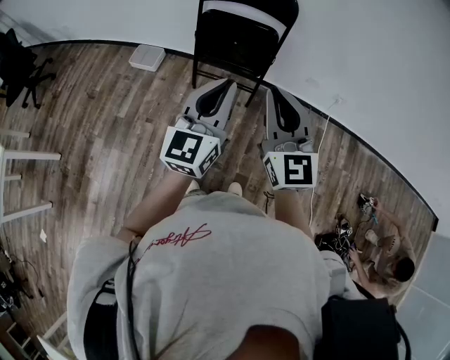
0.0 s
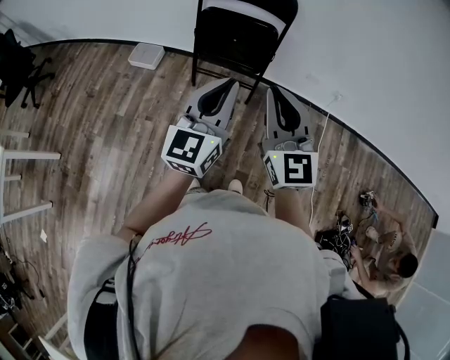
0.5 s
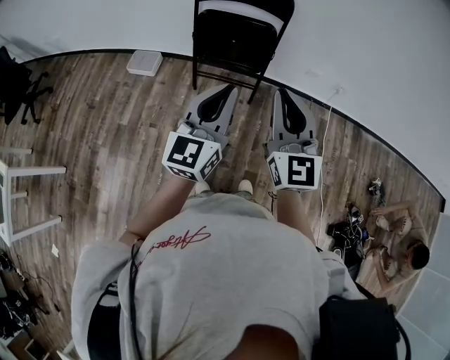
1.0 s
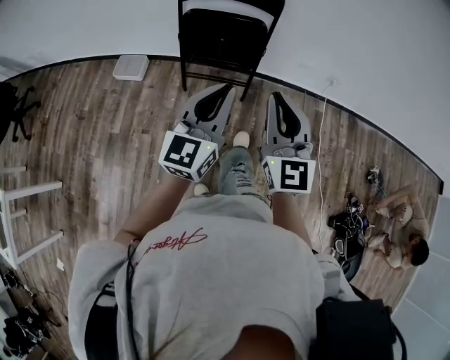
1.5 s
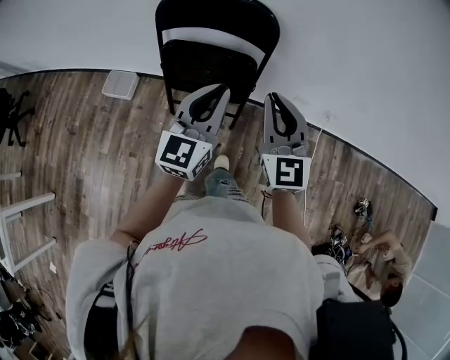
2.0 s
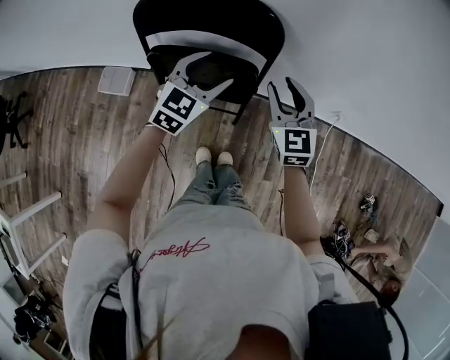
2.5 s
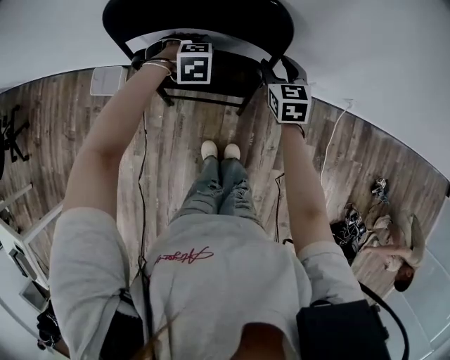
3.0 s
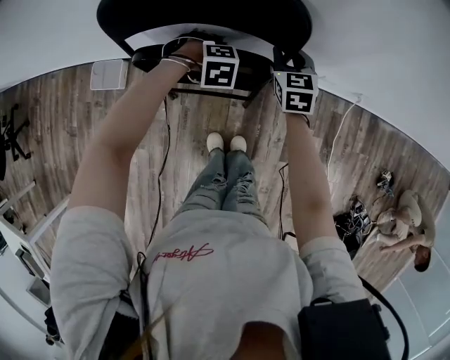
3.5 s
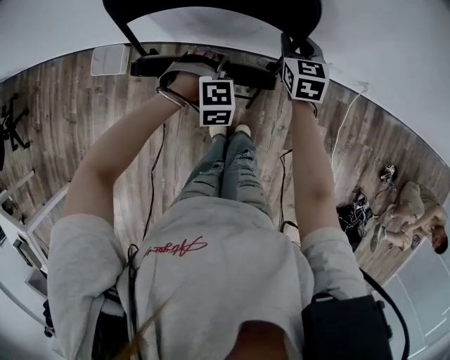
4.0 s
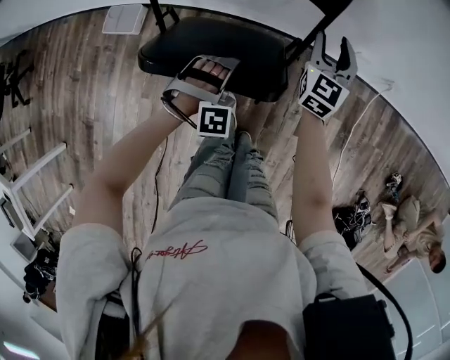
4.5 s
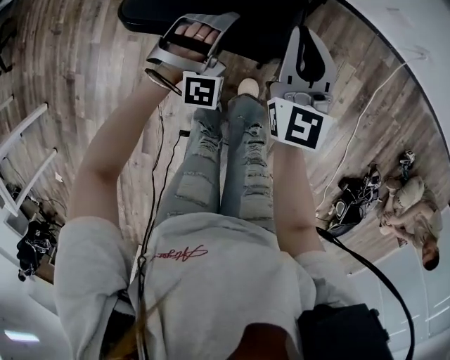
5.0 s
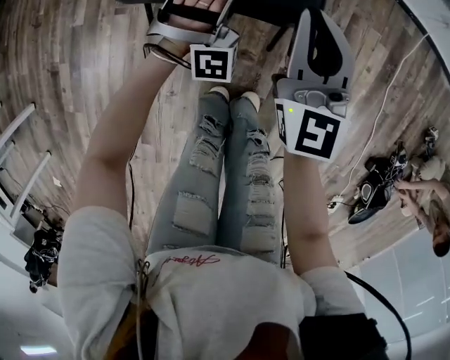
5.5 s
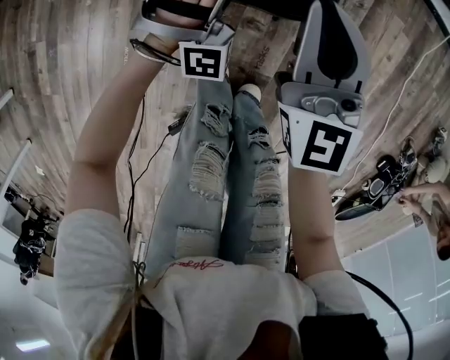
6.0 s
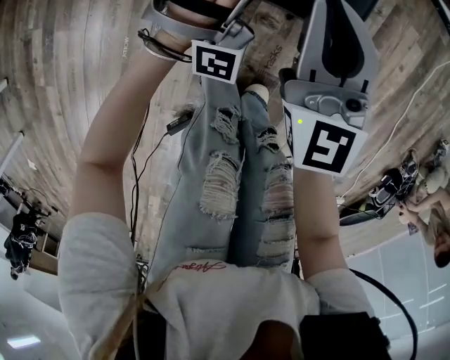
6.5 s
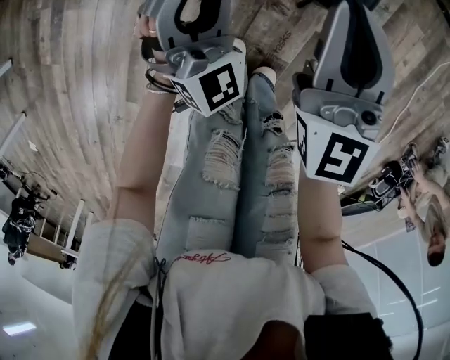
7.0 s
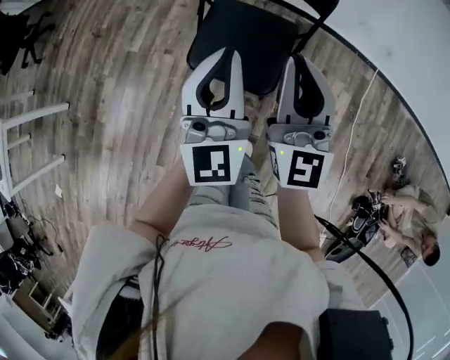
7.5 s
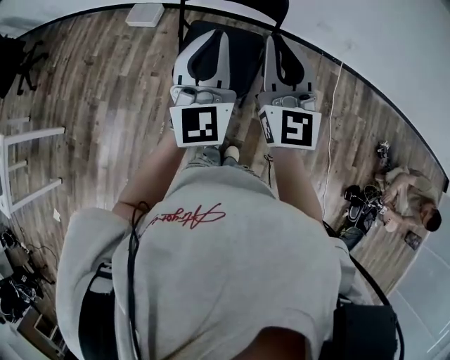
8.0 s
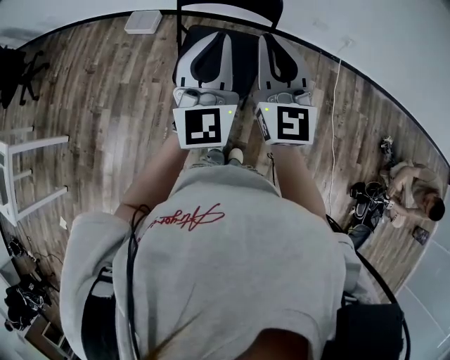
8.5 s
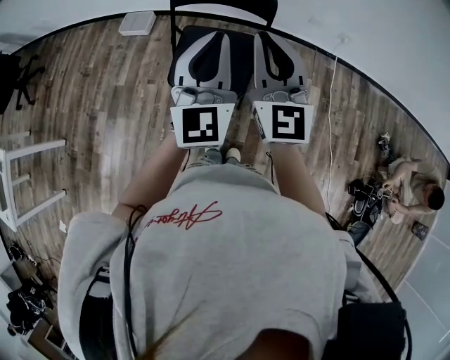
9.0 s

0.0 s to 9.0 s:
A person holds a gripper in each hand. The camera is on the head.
0.0 to 2.0 s: Both grippers travel together forward, about 25 cm.
2.0 to 4.5 s: The grippers both shift downward by approximately 30 cm. The left gripper twists some 90 degrees clockwise, seen from behind, and opens up. Meanwhile the right gripper swivels some 30 degrees, and opens.
4.5 to 7.0 s: The right gripper heads backward and to the left, covering about 50 cm, swivels about 30 degrees, and closes up; the left gripper heads backward, downward and to the left, covering roughly 40 cm, and tilts its fingers approximately 40 degrees upward.
7.0 to 9.0 s: Both grippers move upward, roughly 50 cm. The left gripper changes its angle by some 40 degrees, and closes up.

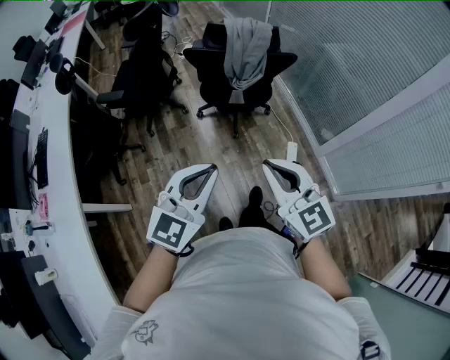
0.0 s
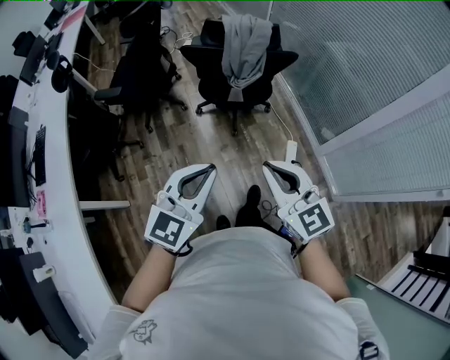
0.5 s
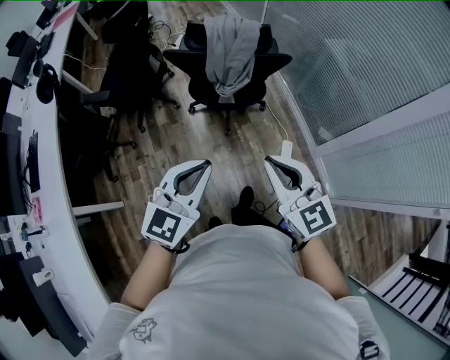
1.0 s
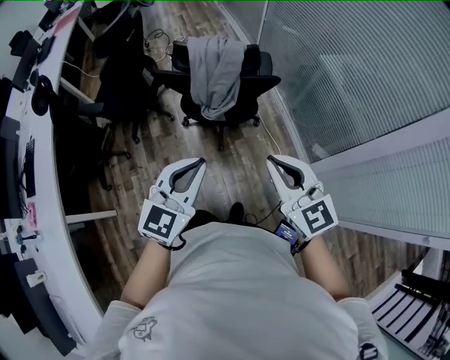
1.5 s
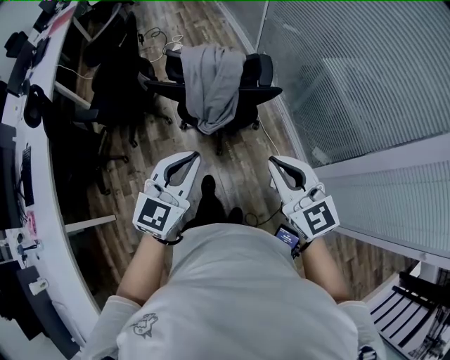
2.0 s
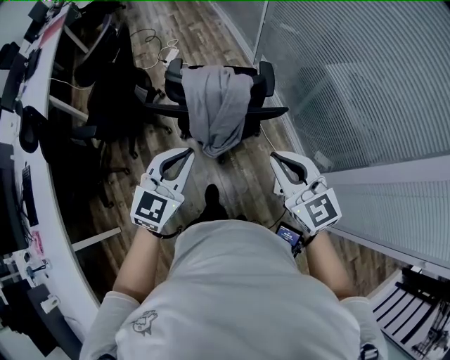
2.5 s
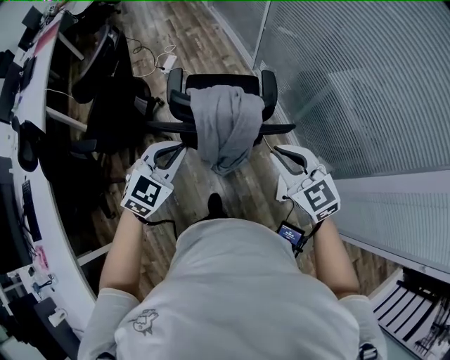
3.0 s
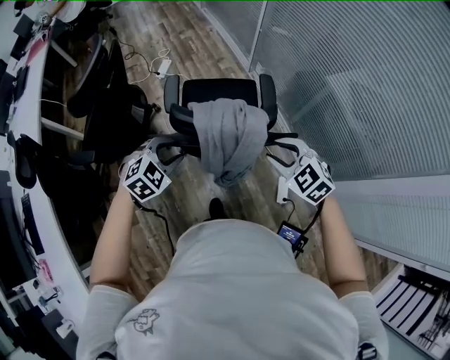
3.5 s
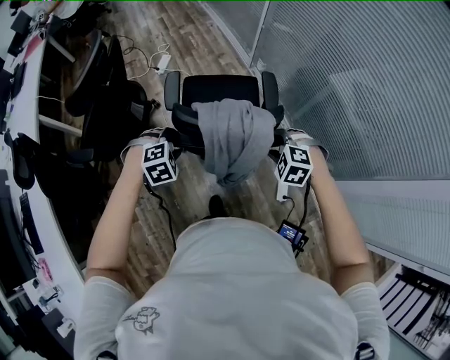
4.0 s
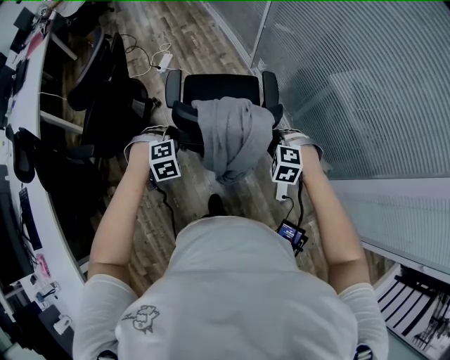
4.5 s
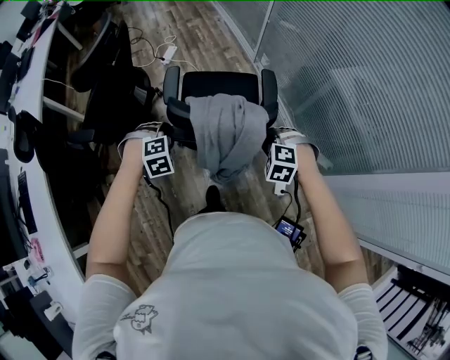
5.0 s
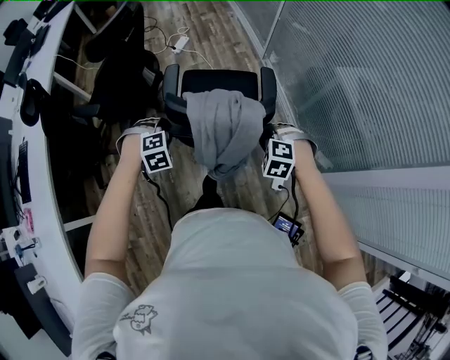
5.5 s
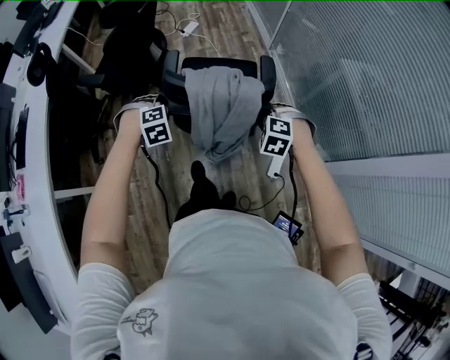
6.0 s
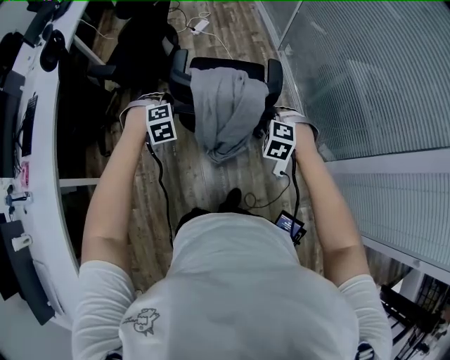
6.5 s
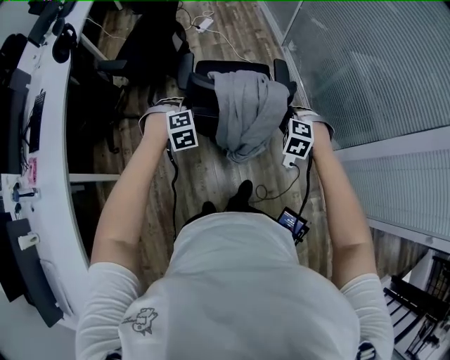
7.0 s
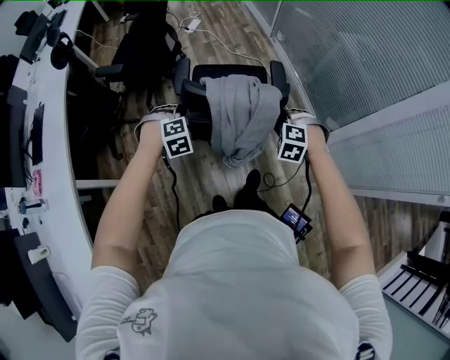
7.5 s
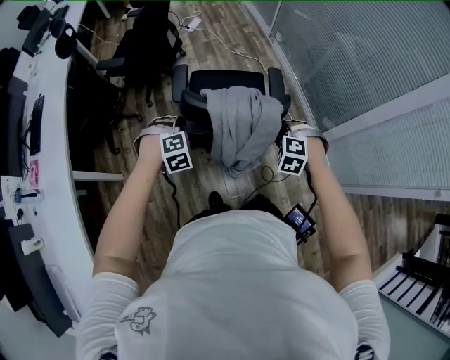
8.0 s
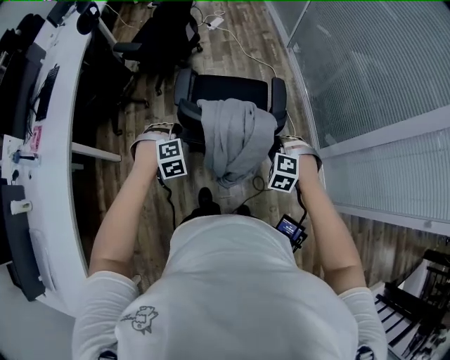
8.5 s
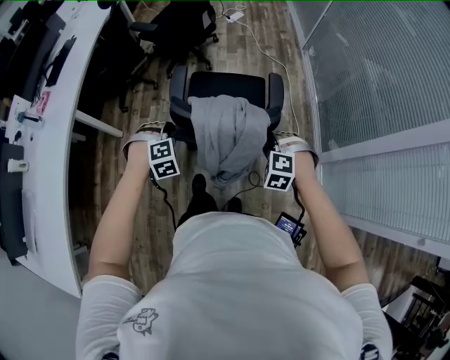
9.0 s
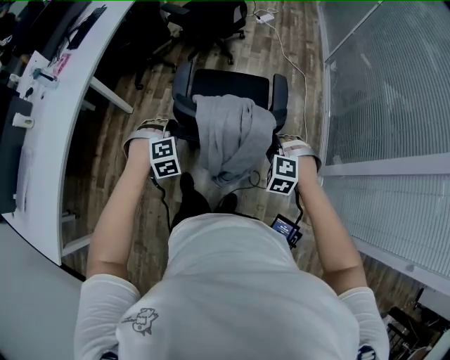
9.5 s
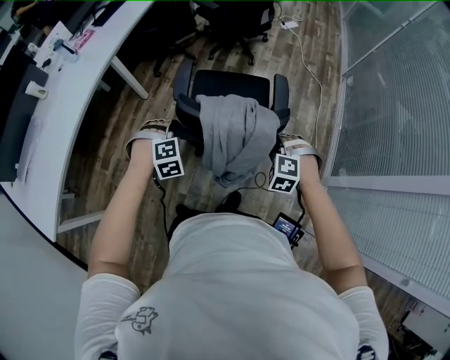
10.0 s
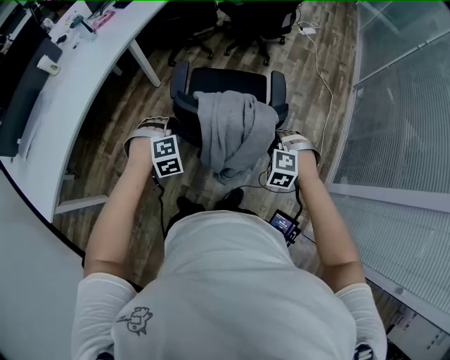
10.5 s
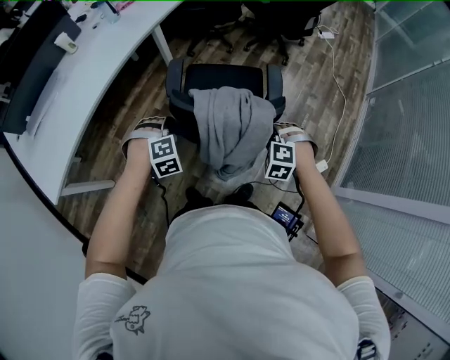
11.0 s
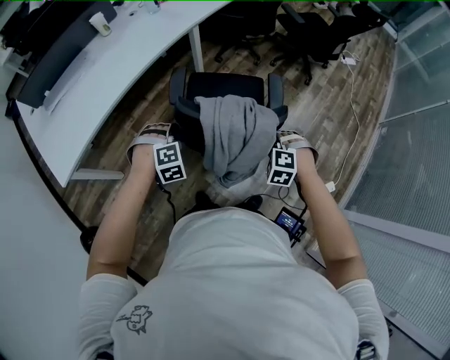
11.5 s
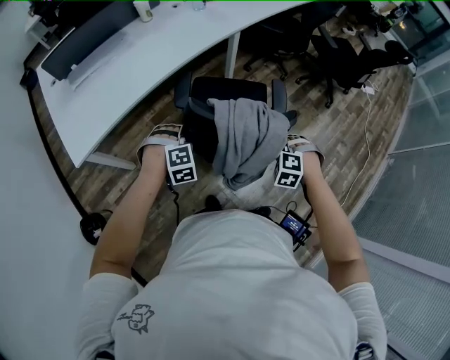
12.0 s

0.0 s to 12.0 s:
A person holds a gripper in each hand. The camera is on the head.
0.0 to 2.0 s: Both grippers move forward and to the right, some 35 cm.
2.0 to 4.0 s: The left gripper heads forward, downward and to the left, covering roughly 40 cm, tips its fingers downward by about 50 degrees, and opens up, while the right gripper is displaced forward and downward by about 35 cm, angles its fingers downward, by about 50 degrees, and opens.
4.0 to 6.0 s: The two grippers go roughly 20 cm backward.
6.0 to 8.0 s: The two grippers go roughly 30 cm backward.
8.0 to 10.0 s: The left gripper ends up some 30 cm from where it was, and swivels roughly 30 degrees, while the right gripper moves roughly 15 cm, and rotates some 40 degrees.
10.0 to 12.0 s: The two grippers travel together, approximately 40 cm. The left gripper changes its angle by approximately 30 degrees, while the right gripper rotates roughly 30 degrees.

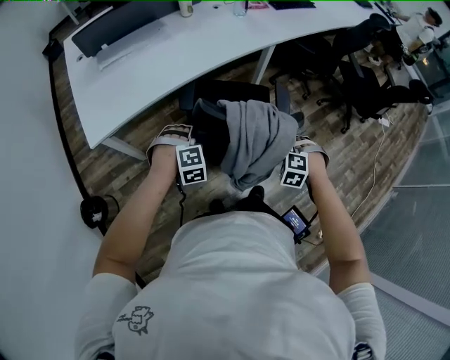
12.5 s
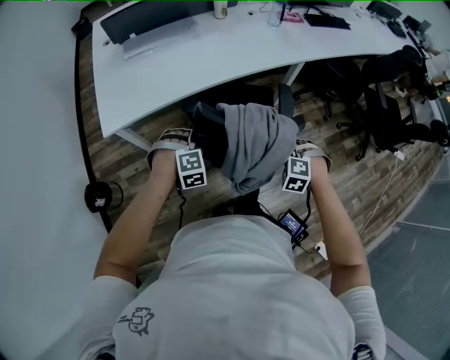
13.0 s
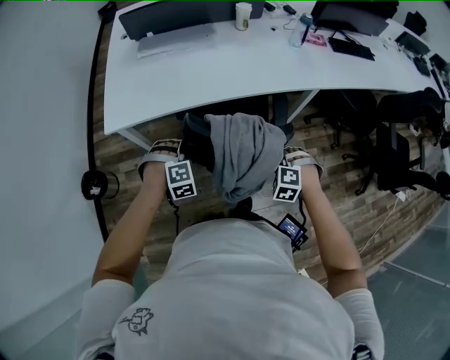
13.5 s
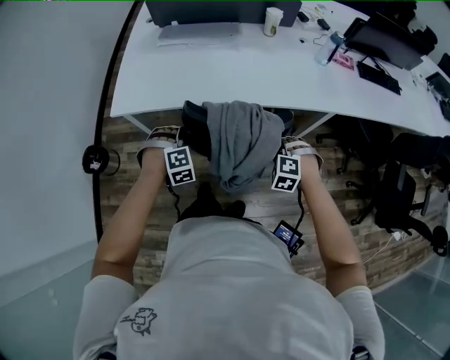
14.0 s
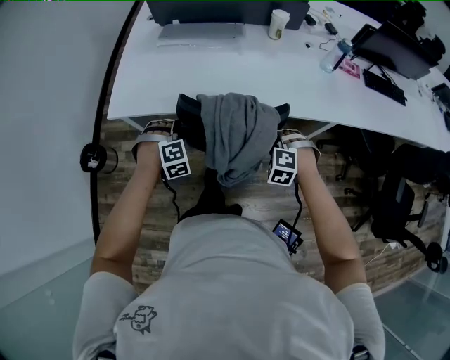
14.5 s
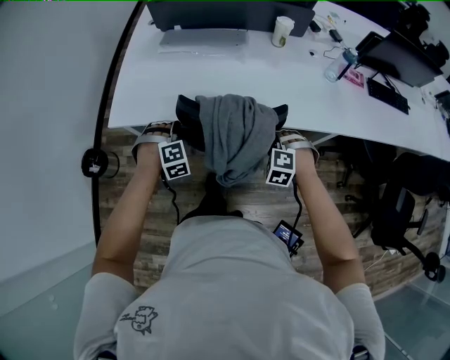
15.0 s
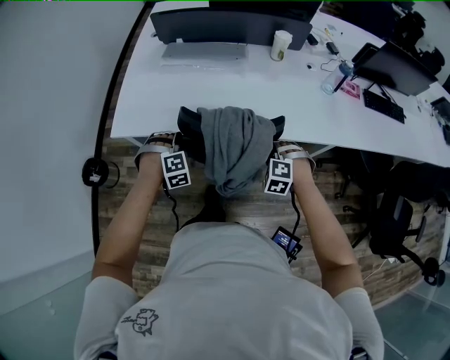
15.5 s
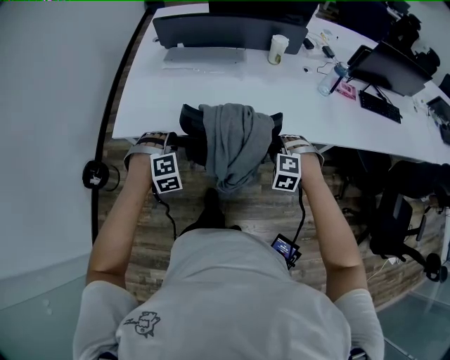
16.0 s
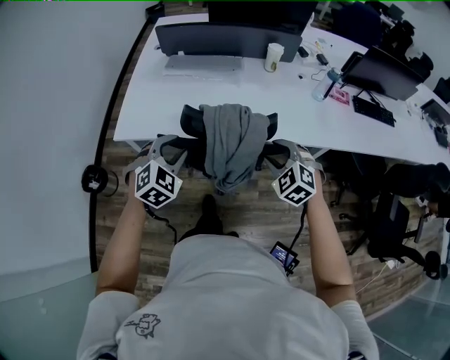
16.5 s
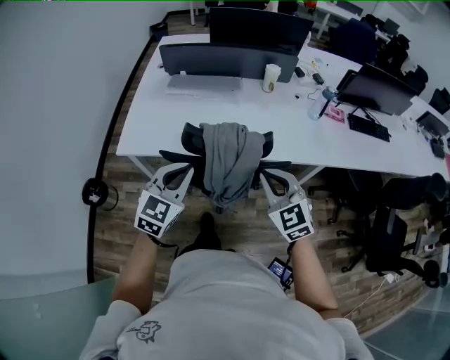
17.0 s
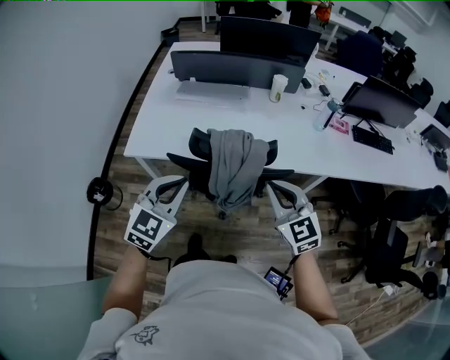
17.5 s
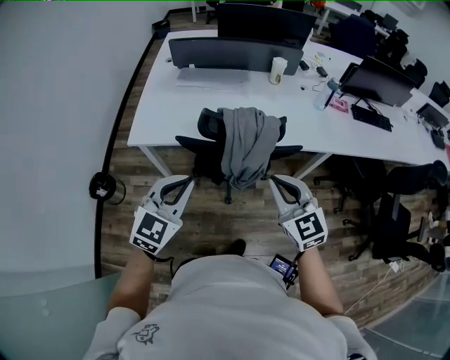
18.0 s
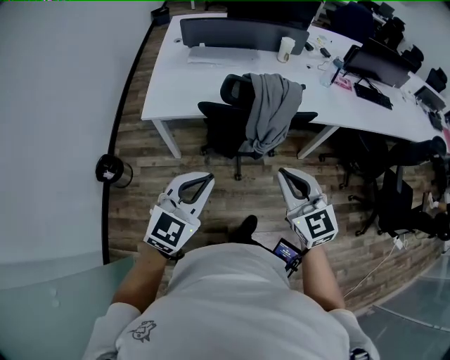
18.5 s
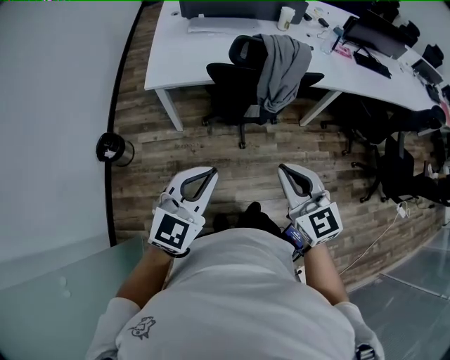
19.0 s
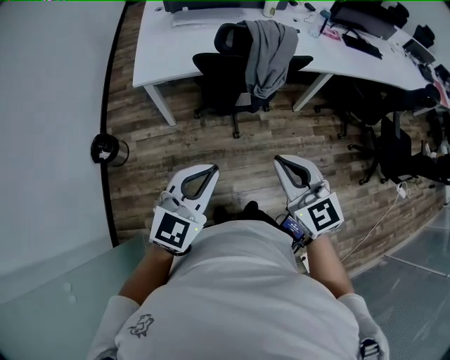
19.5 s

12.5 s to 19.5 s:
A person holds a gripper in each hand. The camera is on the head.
12.5 to 14.5 s: The left gripper shifts by some 25 cm, and swivels approximately 40 degrees. Meanwhile the right gripper ends up about 40 cm from where it was, and swivels about 40 degrees.
14.5 to 16.0 s: The left gripper heads upward, covering some 5 cm; the right gripper moves roughly 5 cm, and opens up.
16.0 to 17.5 s: Both grippers move upward and backward, approximately 25 cm. The right gripper angles its fingers upward, by about 50 degrees, and closes up. Meanwhile the left gripper tilts its fingers about 40 degrees upward, and closes its fingers.
17.5 to 19.5 s: The right gripper goes roughly 40 cm backward and to the left; the left gripper heads backward, covering some 35 cm.
